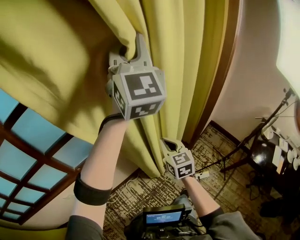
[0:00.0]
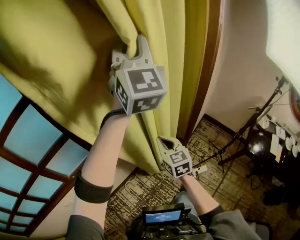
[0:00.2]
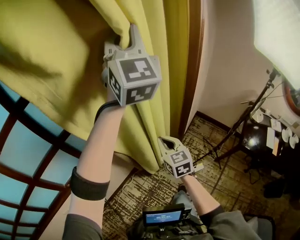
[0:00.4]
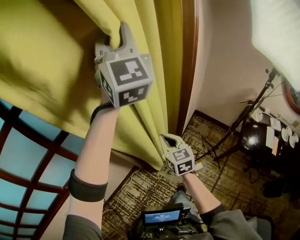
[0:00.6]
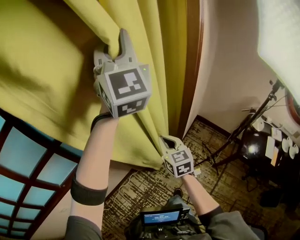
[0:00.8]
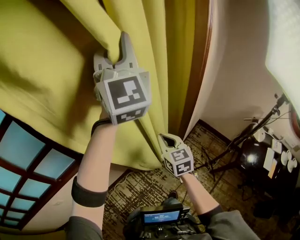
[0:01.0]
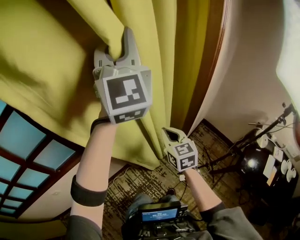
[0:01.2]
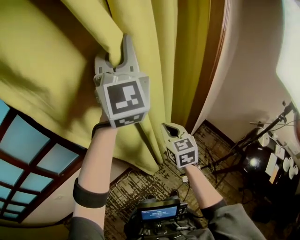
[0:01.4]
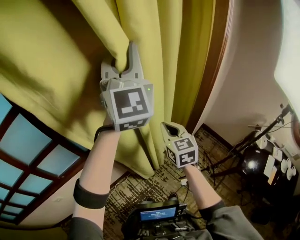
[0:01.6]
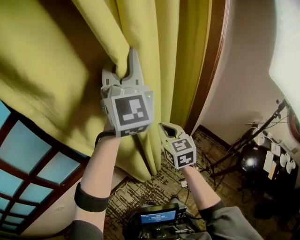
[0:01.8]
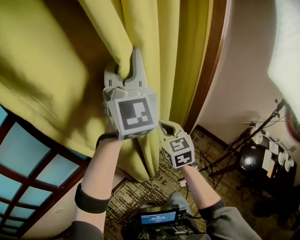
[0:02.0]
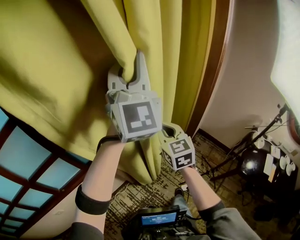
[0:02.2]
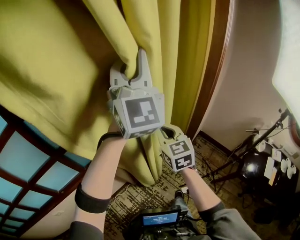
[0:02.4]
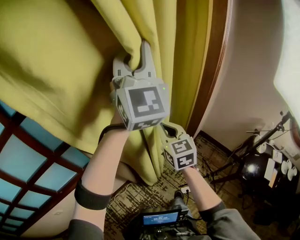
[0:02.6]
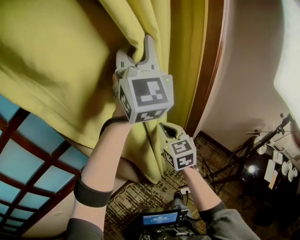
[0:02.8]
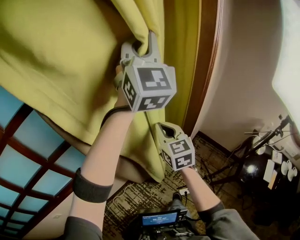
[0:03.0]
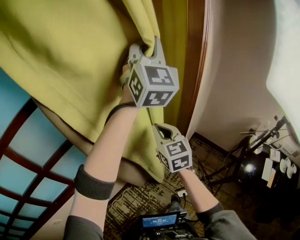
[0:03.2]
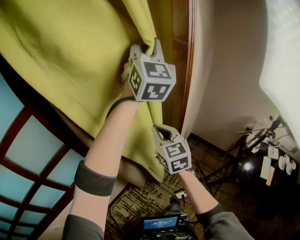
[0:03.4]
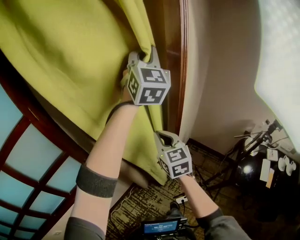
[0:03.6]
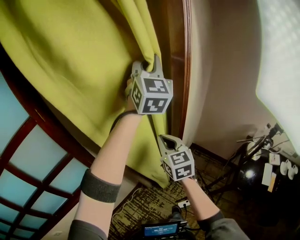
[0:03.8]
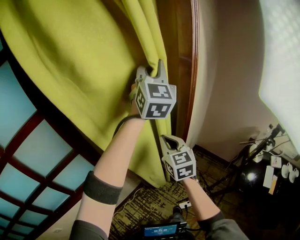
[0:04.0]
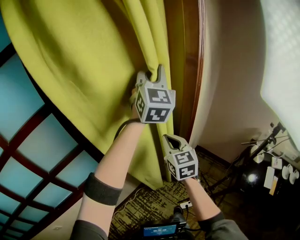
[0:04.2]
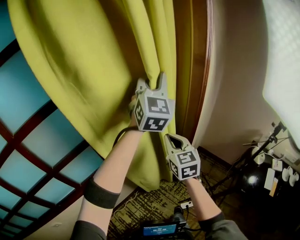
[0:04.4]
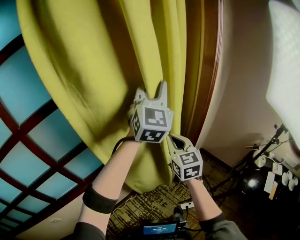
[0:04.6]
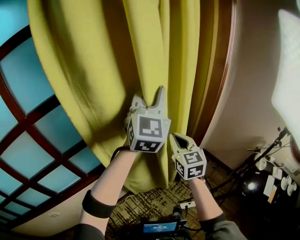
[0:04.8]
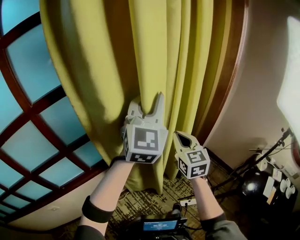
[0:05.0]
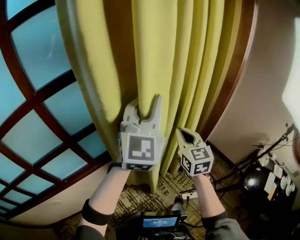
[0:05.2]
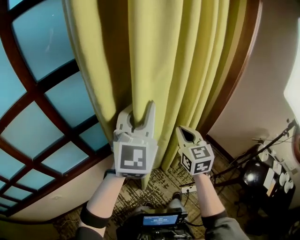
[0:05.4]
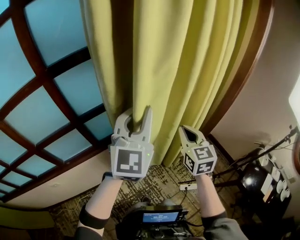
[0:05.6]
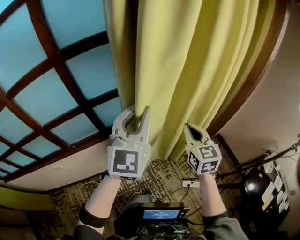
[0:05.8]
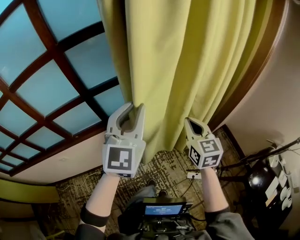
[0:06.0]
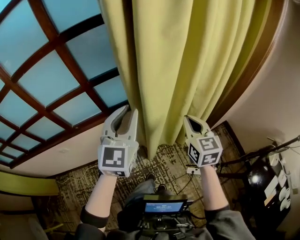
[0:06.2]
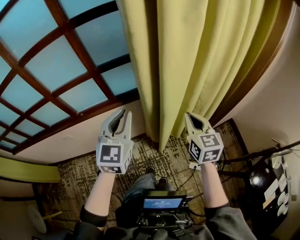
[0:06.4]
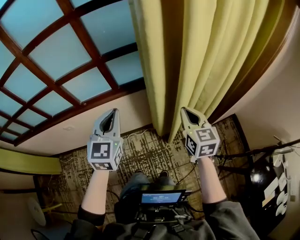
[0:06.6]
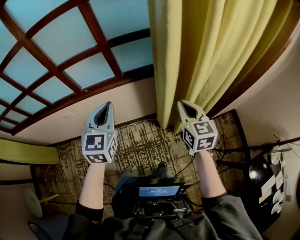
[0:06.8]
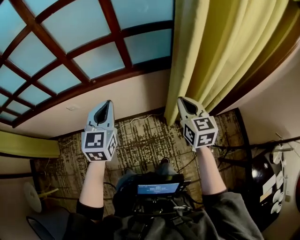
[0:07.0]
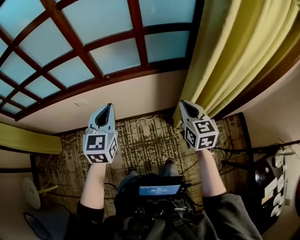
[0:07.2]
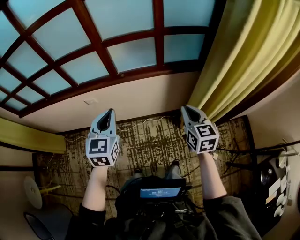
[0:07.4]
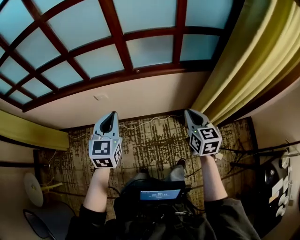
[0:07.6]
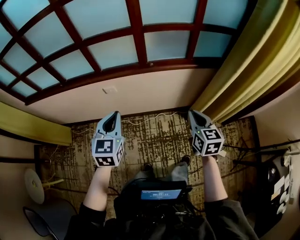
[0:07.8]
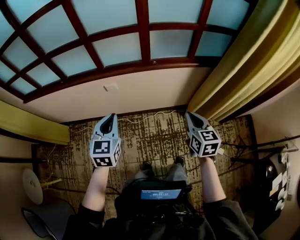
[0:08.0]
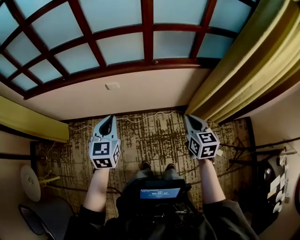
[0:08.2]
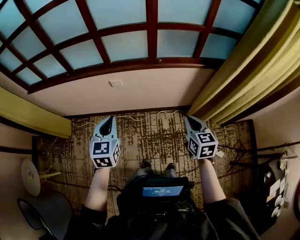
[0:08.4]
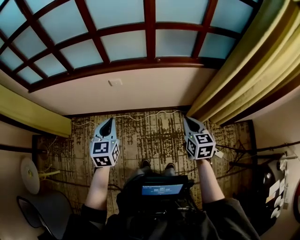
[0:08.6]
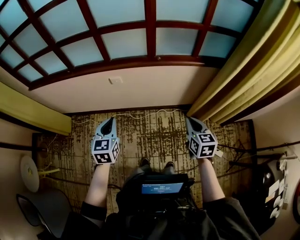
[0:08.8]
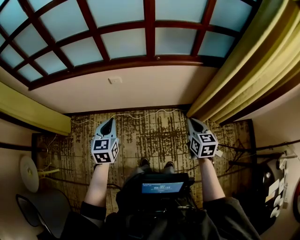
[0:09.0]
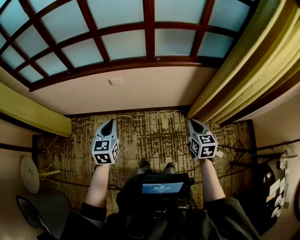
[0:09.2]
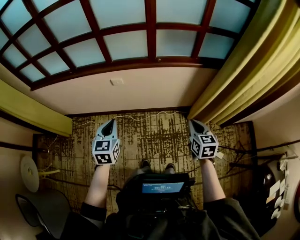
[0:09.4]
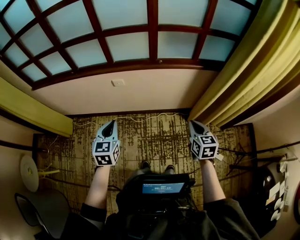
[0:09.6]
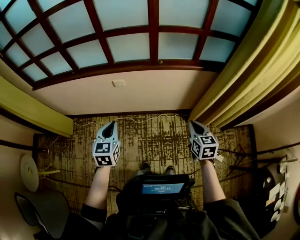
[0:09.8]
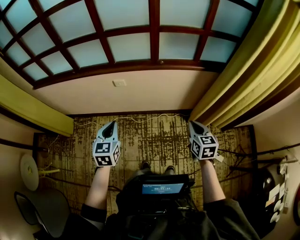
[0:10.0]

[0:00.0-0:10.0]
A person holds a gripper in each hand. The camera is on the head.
0:00.0 to 0:01.4: The grippers both shift to the right and forward by about 15 cm.
0:01.4 to 0:02.8: The left gripper moves to the right and forward, some 10 cm; the right gripper moves forward and upward, approximately 10 cm.
0:02.8 to 0:04.2: The right gripper shifts some 5 cm to the right. The left gripper shifts some 15 cm to the right, forward and downward.
0:04.2 to 0:05.8: The right gripper is displaced to the left and backward by about 20 cm. Meanwhile the left gripper is displaced to the left, backward and downward by about 40 cm.
0:05.8 to 0:07.2: The left gripper moves about 40 cm, and turns by roughly 40 degrees. The right gripper changes place by roughly 25 cm, and swivels about 20 degrees.
0:07.2 to 0:08.6: The grippers both shift to the left by roughly 30 cm.
0:08.6 to 0:10.0: The grippers move only a little.

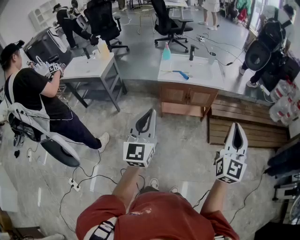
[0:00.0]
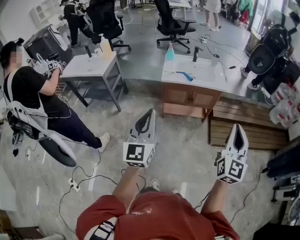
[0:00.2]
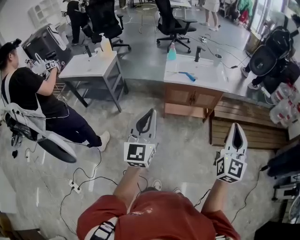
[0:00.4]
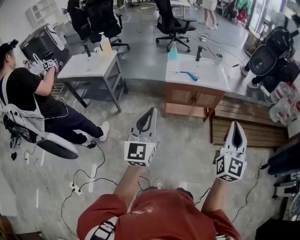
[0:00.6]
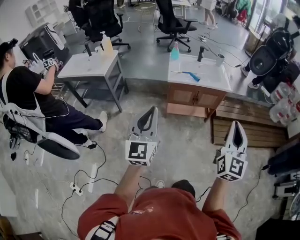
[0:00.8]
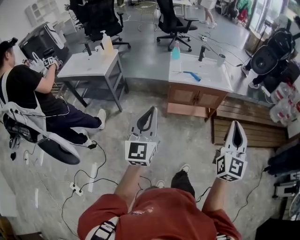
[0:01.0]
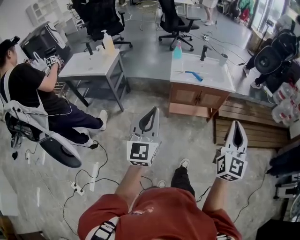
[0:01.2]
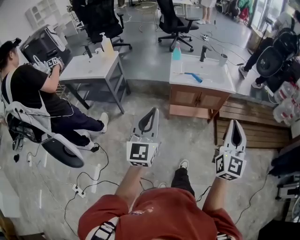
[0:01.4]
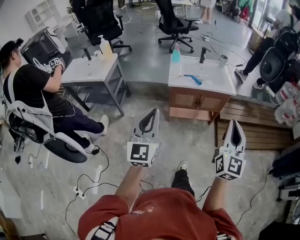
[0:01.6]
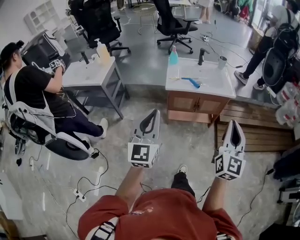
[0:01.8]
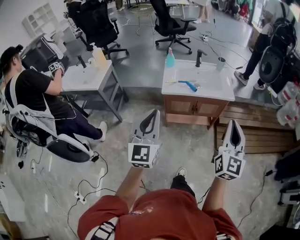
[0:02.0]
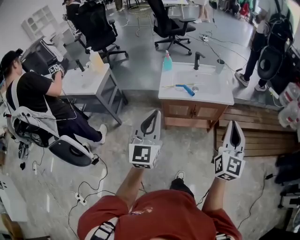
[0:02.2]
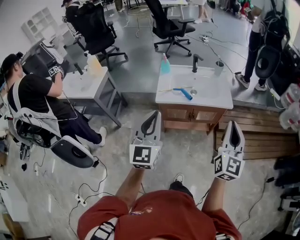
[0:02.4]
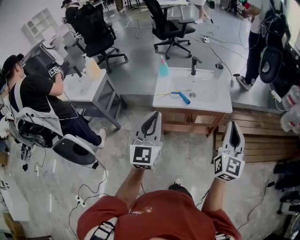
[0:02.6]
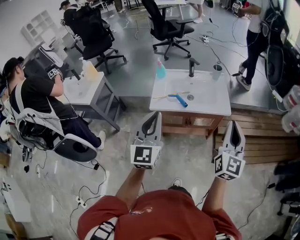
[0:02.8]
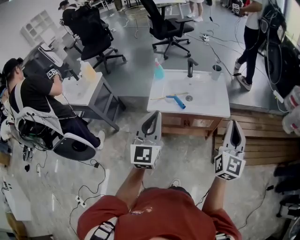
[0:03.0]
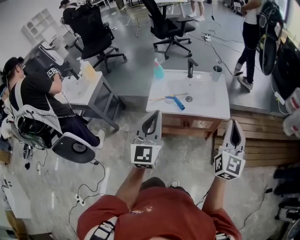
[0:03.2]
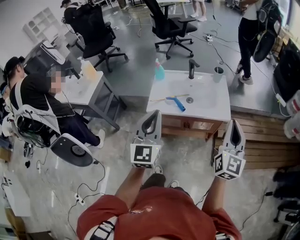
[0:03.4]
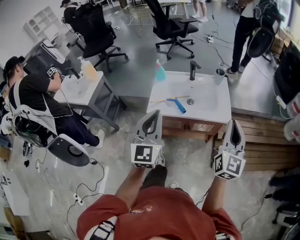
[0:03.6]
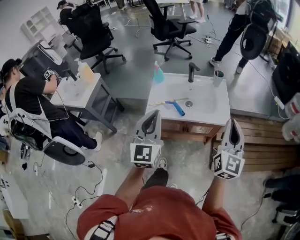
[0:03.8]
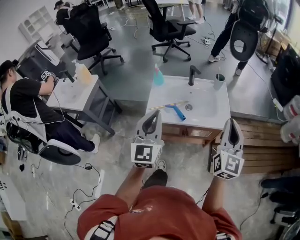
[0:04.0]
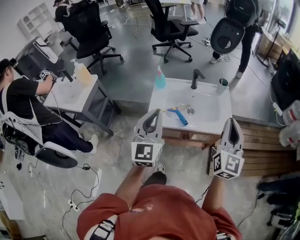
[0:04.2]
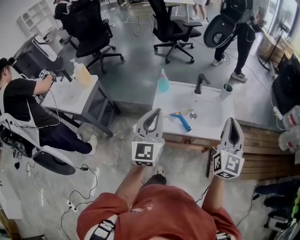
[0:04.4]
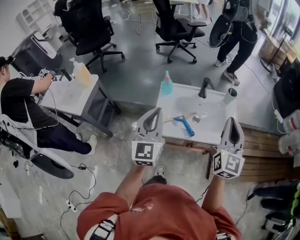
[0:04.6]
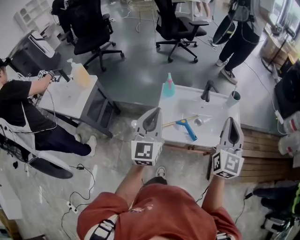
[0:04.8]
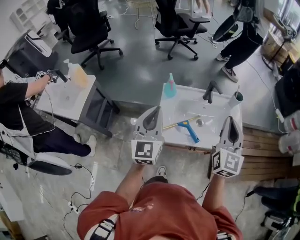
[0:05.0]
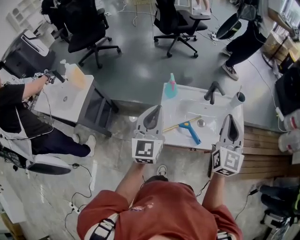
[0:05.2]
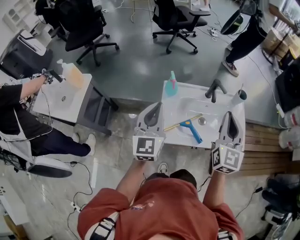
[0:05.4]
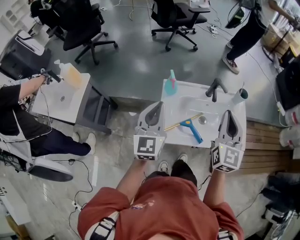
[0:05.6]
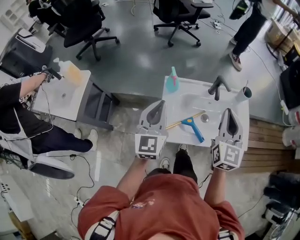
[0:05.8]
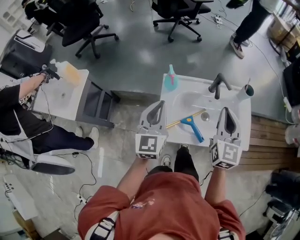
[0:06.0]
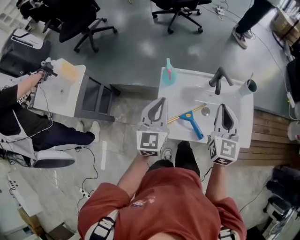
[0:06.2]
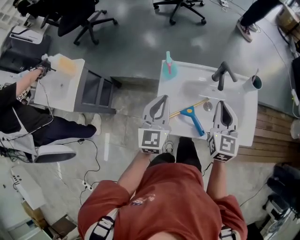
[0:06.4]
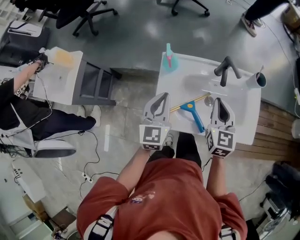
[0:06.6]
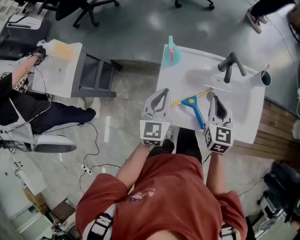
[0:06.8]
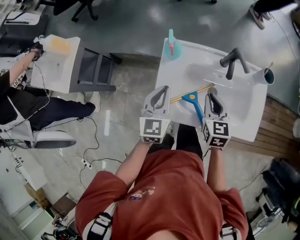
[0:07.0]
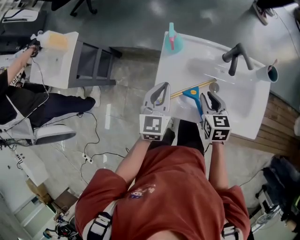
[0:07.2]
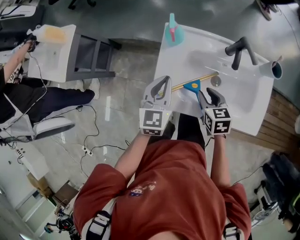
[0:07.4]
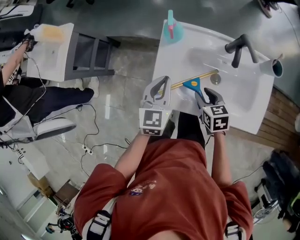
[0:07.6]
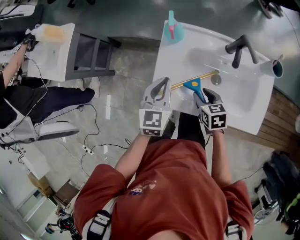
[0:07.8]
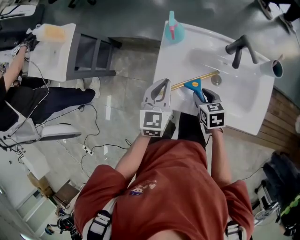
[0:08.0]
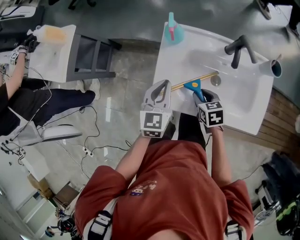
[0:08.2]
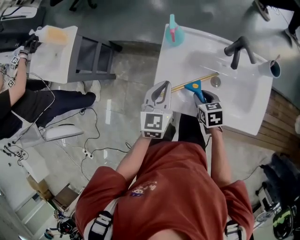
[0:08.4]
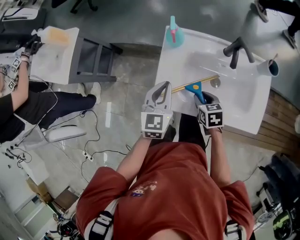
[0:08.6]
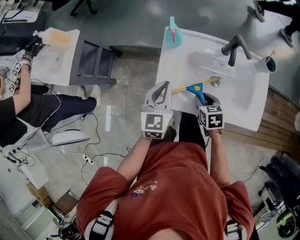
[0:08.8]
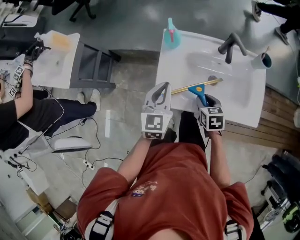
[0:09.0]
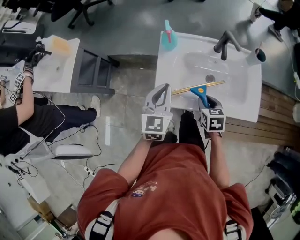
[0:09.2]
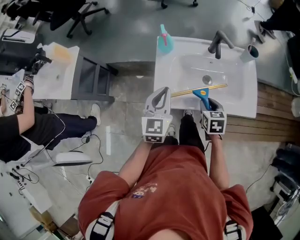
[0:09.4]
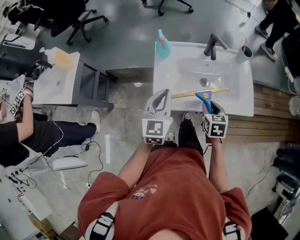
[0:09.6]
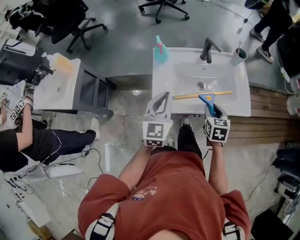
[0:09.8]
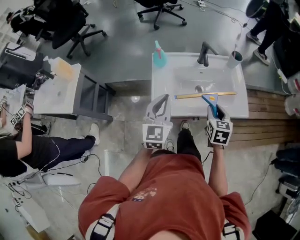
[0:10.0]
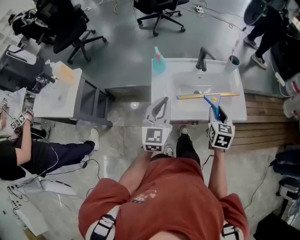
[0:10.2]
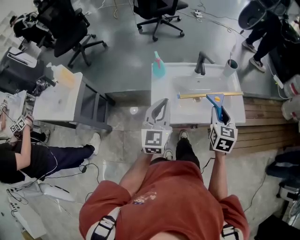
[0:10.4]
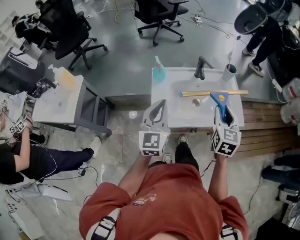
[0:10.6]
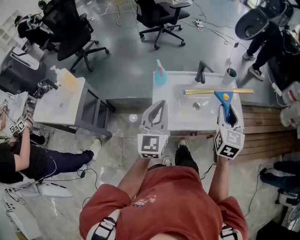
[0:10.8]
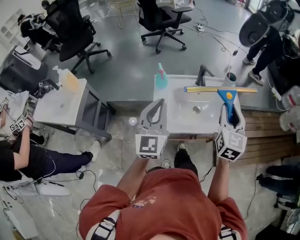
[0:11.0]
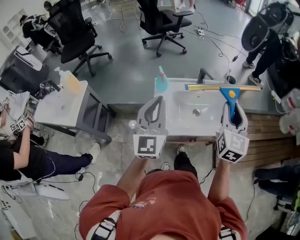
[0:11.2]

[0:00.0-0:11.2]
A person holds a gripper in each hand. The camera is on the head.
0:00.0 to 0:01.6: Both grippers travel together to the left and forward, about 15 cm.
0:01.6 to 0:03.2: Both grippers are carried forward and to the right, some 40 cm.
0:03.2 to 0:04.8: Both grippers travel together forward and to the left, approximately 35 cm.
0:04.8 to 0:06.4: The two grippers go about 25 cm forward and downward. The right gripper changes its angle by about 20 degrees.
0:06.4 to 0:08.0: The left gripper moves downward, roughly 15 cm, while the right gripper goes approximately 25 cm downward, tilts its fingers about 40 degrees downward, and opens up.
0:08.0 to 0:09.6: The right gripper moves roughly 15 cm, and swivels about 30 degrees, while the left gripper shifts by some 15 cm.
0:09.6 to 0:11.2: The grippers both shift upward by roughly 25 cm. The left gripper swivels about 30 degrees. The right gripper angles its fingers upward, by roughly 40 degrees.

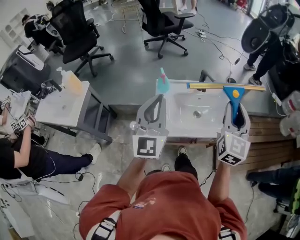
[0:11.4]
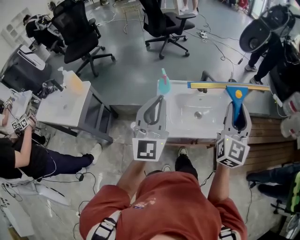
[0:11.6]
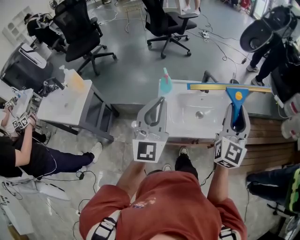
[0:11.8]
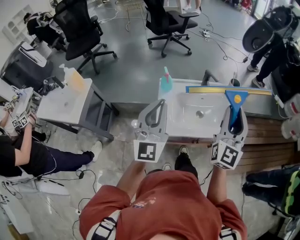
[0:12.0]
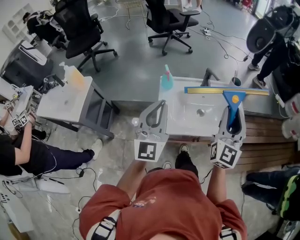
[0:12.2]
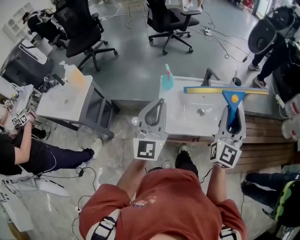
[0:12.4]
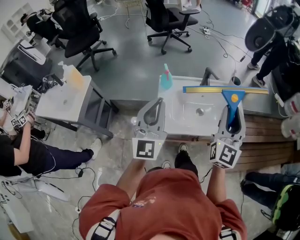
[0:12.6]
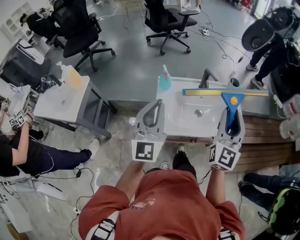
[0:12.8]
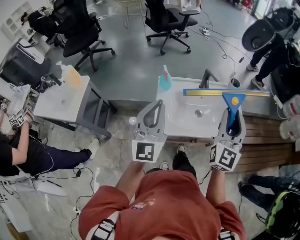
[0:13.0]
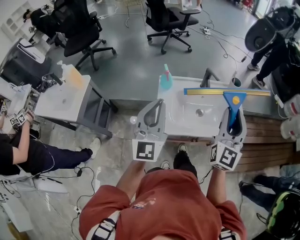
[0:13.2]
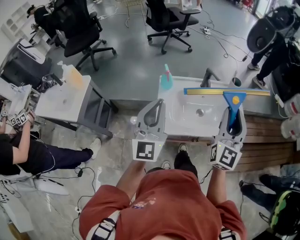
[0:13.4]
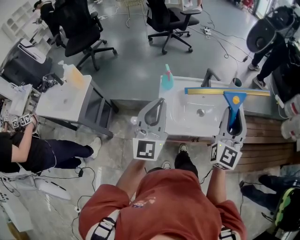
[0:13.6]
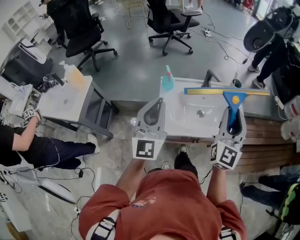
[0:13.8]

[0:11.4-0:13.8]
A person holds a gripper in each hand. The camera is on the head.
0:11.4 to 0:12.6: The grippers move only a little.
0:12.6 to 0:13.8: The two grippers keep their place.
